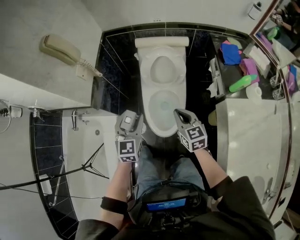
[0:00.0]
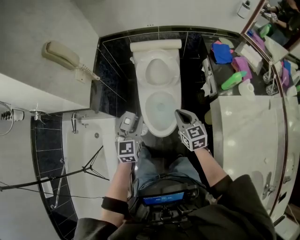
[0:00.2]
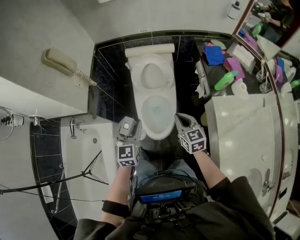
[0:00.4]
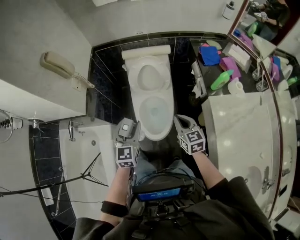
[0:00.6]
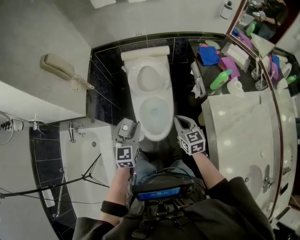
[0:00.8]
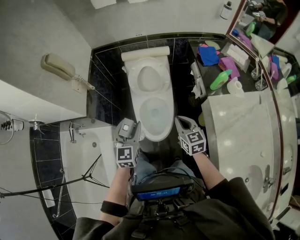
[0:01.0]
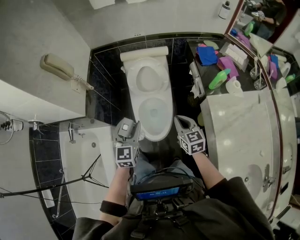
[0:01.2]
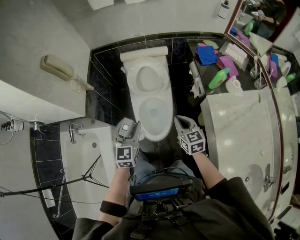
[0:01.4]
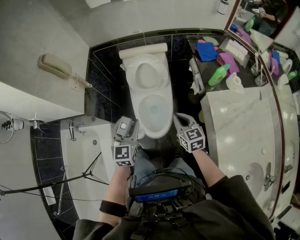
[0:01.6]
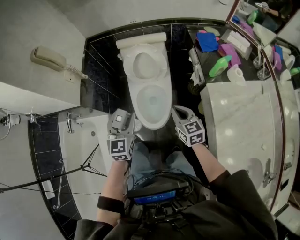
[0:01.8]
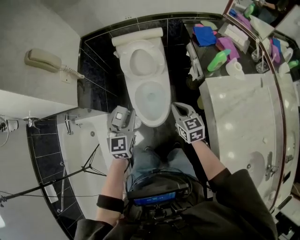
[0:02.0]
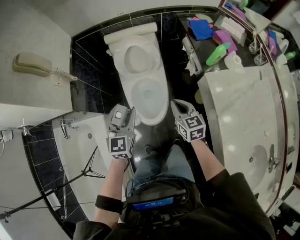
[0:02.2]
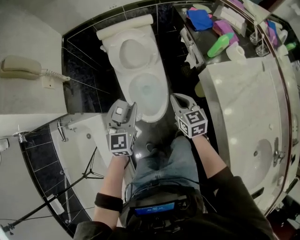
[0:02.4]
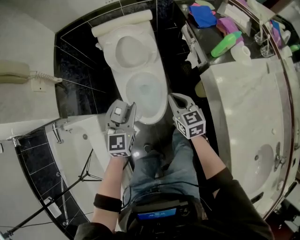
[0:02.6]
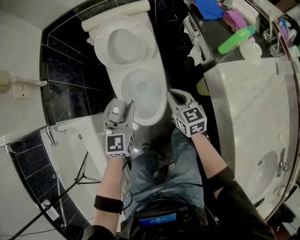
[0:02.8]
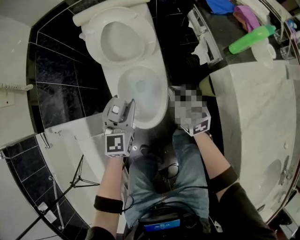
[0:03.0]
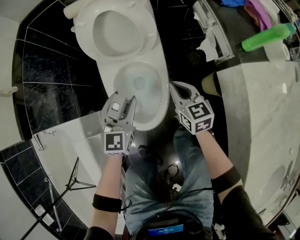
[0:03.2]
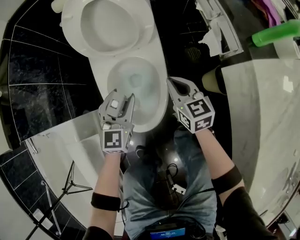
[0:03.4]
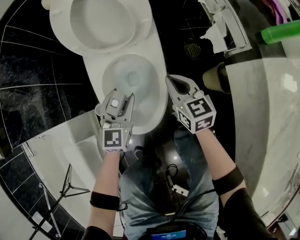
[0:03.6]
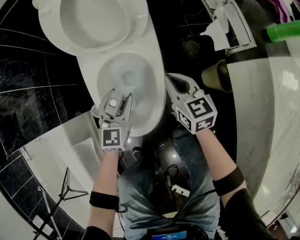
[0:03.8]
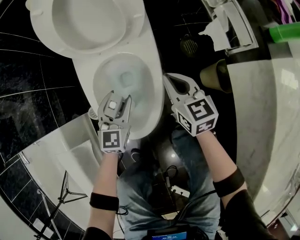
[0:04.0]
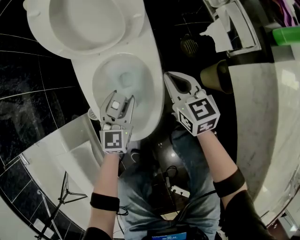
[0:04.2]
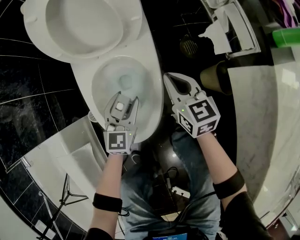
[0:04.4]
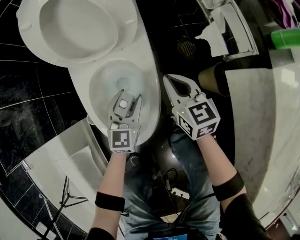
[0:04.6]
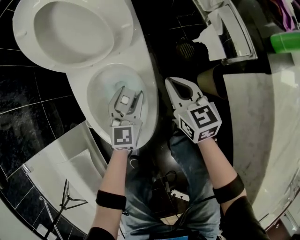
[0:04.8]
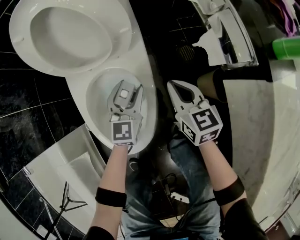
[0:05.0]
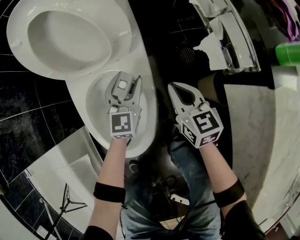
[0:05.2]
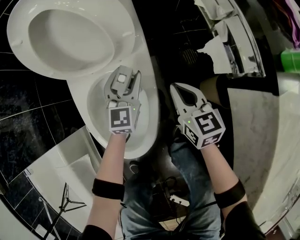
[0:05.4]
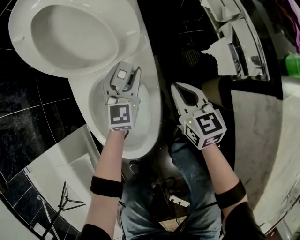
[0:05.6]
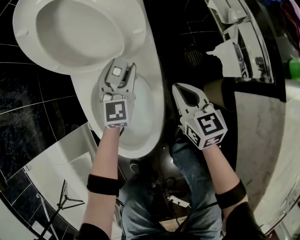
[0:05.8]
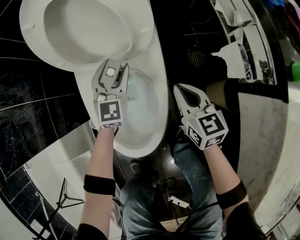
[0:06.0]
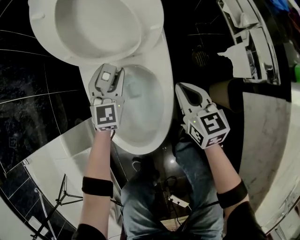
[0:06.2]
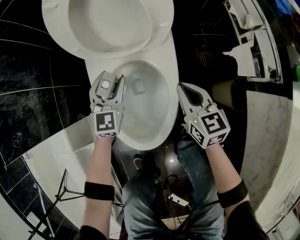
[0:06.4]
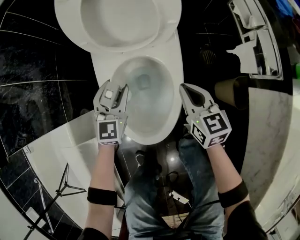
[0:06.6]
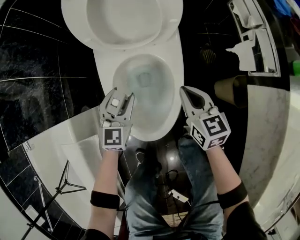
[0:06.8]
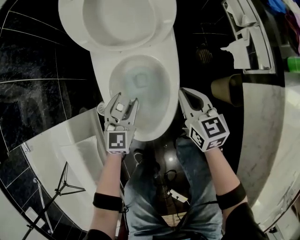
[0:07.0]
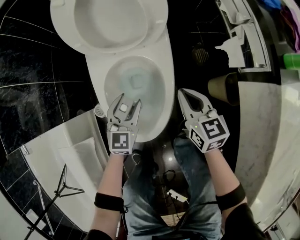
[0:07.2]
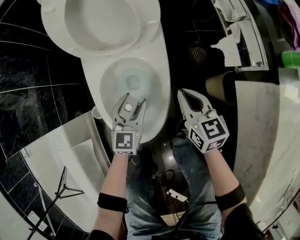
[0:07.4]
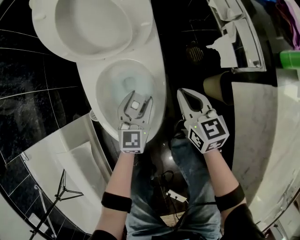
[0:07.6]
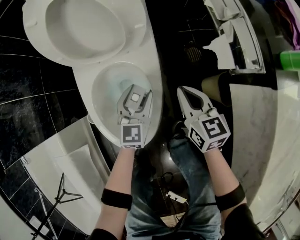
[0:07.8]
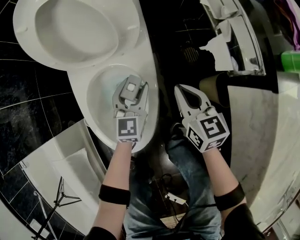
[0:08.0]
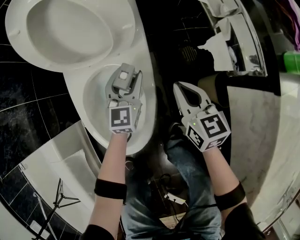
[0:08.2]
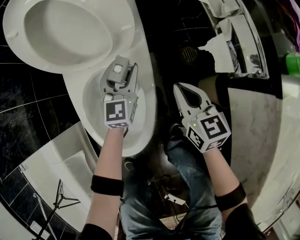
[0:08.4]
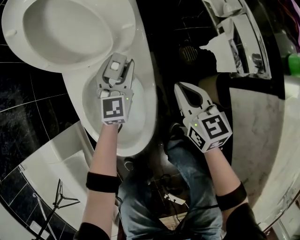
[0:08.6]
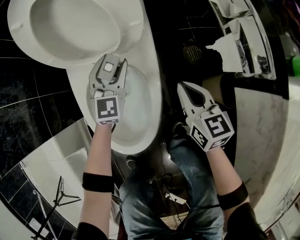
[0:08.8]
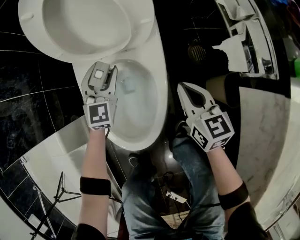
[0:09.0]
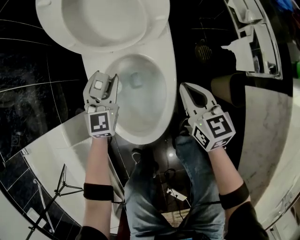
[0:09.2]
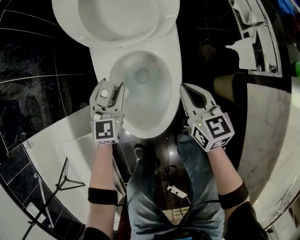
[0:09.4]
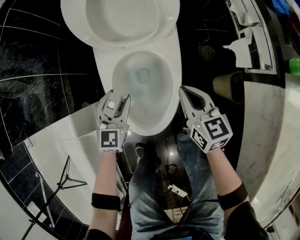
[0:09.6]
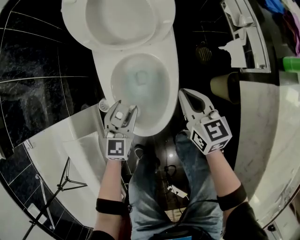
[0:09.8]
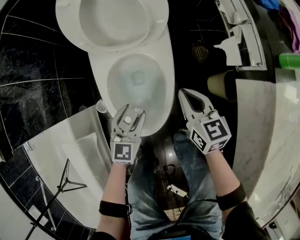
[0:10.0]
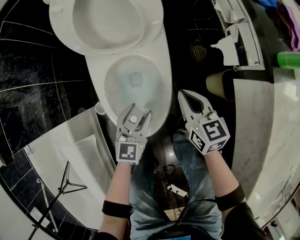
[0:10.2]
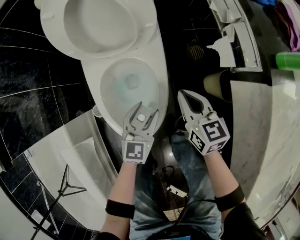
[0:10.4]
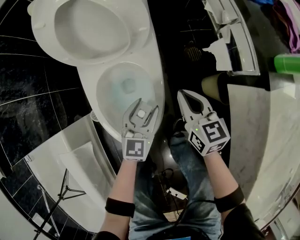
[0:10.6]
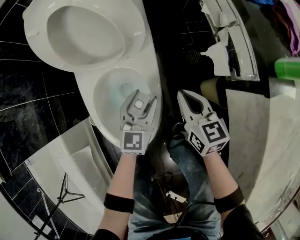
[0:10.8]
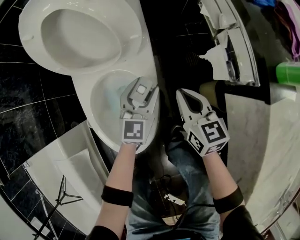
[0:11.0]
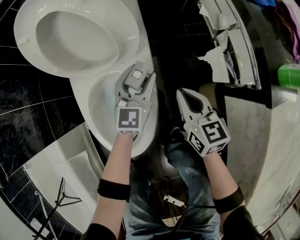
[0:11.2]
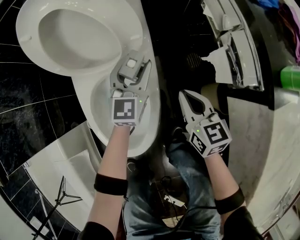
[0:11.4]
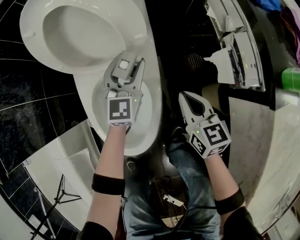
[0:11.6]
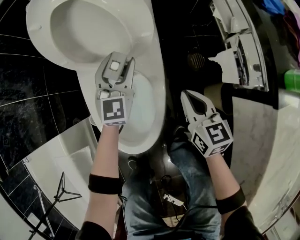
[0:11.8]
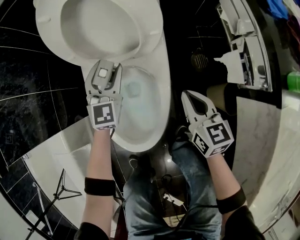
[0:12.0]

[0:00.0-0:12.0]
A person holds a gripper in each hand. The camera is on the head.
0:00.0 to 0:01.6: The right gripper goes roughly 10 cm to the right and backward, while the left gripper shifts some 10 cm backward and to the right.
0:01.6 to 0:03.0: Both grippers move downward and forward, some 30 cm.
0:03.0 to 0:04.4: The right gripper goes some 15 cm downward; the left gripper is displaced downward by approximately 25 cm.
0:04.4 to 0:06.0: The left gripper shifts about 15 cm forward.
0:06.0 to 0:07.6: The right gripper moves backward, about 5 cm. Meanwhile the left gripper heads backward, covering about 15 cm.
0:07.6 to 0:09.0: The left gripper moves forward and to the left, about 15 cm.
0:09.0 to 0:10.4: The left gripper is displaced backward and to the right by about 20 cm, and changes its angle by some 20 degrees.
0:10.4 to 0:12.0: The left gripper moves forward and to the left, about 20 cm, and changes its angle by roughly 30 degrees.

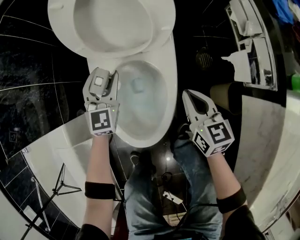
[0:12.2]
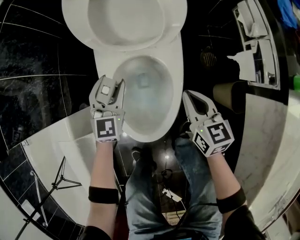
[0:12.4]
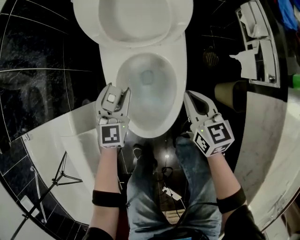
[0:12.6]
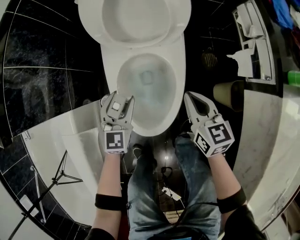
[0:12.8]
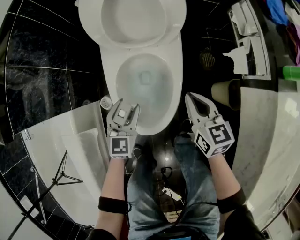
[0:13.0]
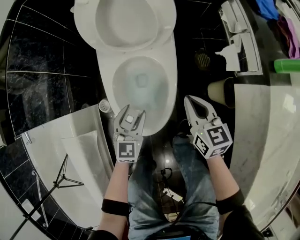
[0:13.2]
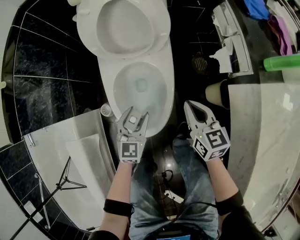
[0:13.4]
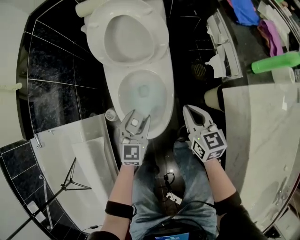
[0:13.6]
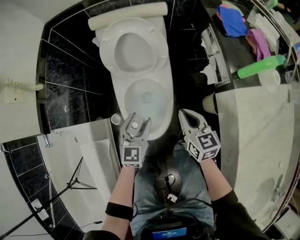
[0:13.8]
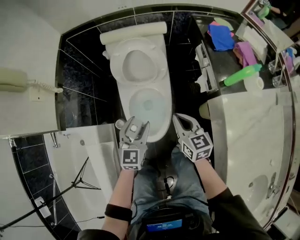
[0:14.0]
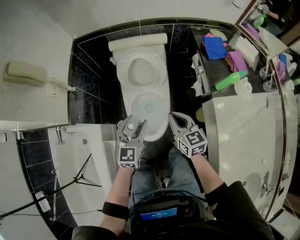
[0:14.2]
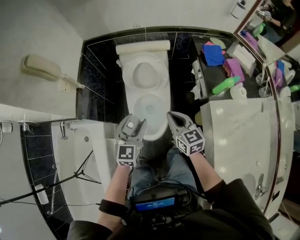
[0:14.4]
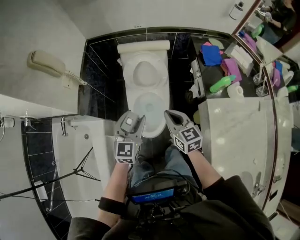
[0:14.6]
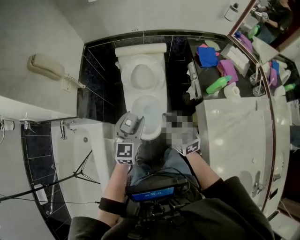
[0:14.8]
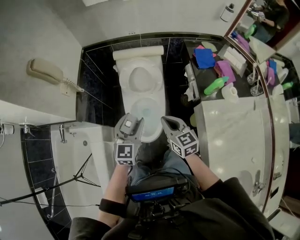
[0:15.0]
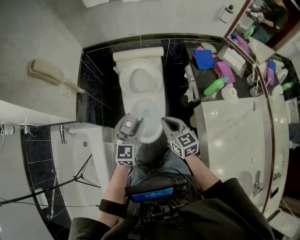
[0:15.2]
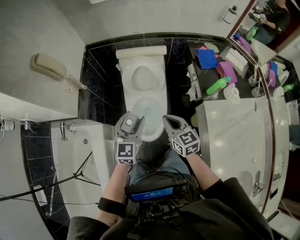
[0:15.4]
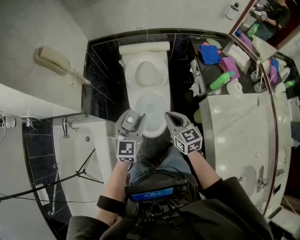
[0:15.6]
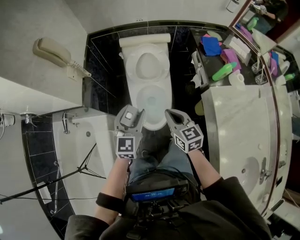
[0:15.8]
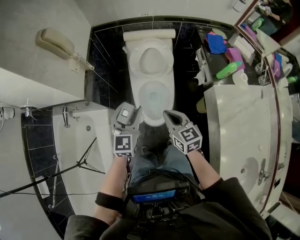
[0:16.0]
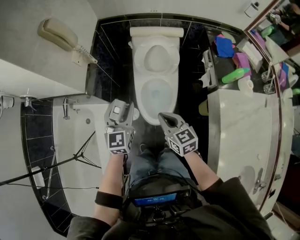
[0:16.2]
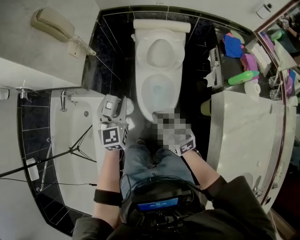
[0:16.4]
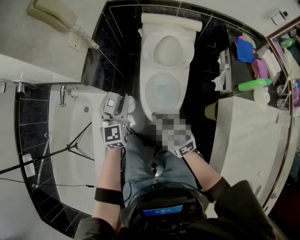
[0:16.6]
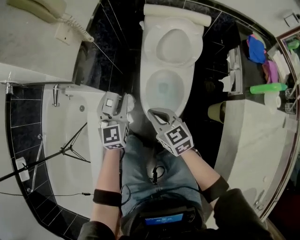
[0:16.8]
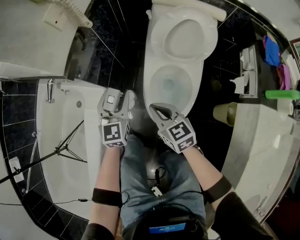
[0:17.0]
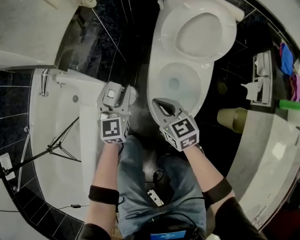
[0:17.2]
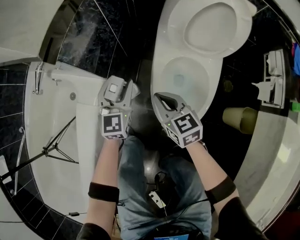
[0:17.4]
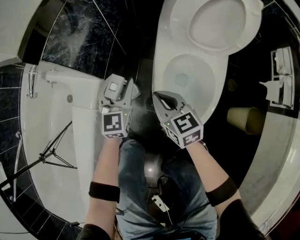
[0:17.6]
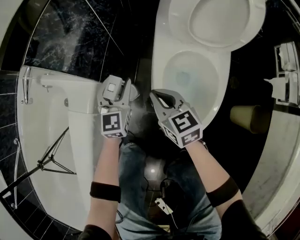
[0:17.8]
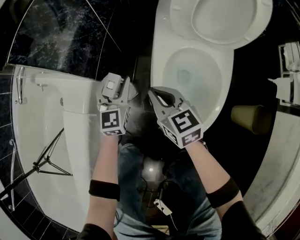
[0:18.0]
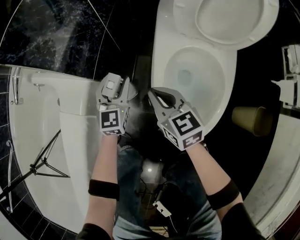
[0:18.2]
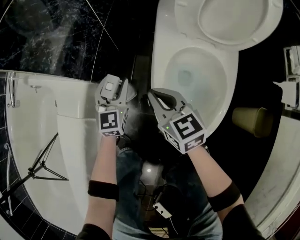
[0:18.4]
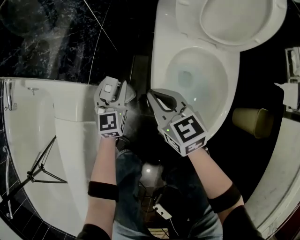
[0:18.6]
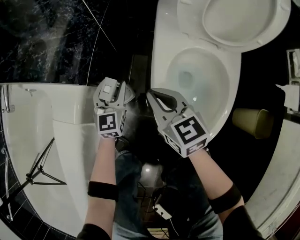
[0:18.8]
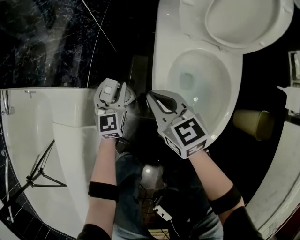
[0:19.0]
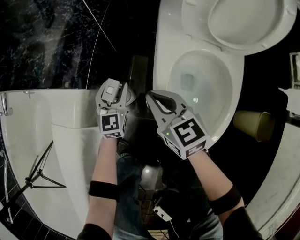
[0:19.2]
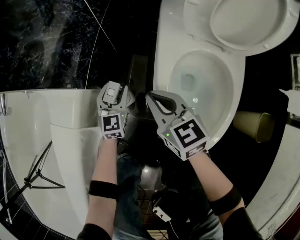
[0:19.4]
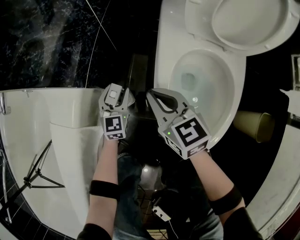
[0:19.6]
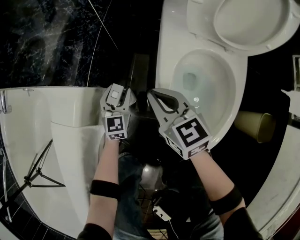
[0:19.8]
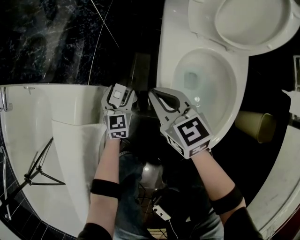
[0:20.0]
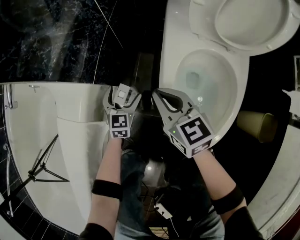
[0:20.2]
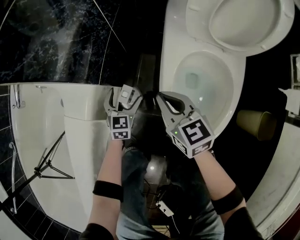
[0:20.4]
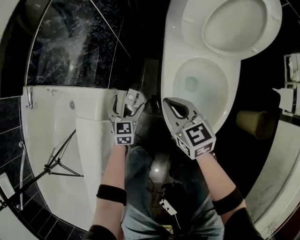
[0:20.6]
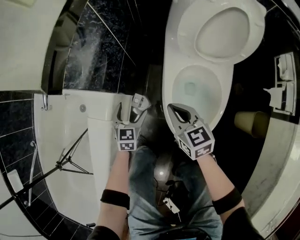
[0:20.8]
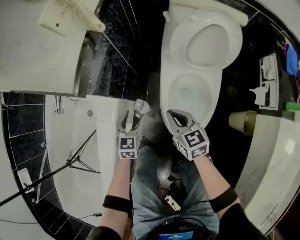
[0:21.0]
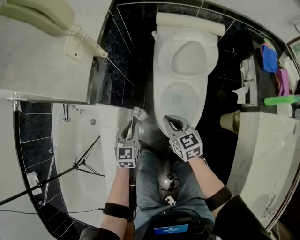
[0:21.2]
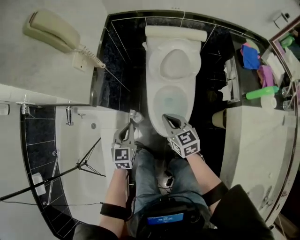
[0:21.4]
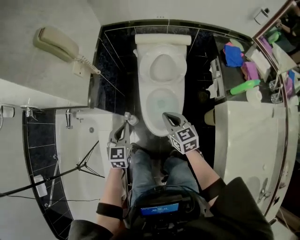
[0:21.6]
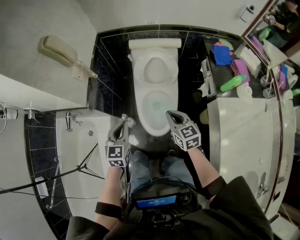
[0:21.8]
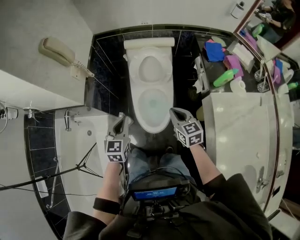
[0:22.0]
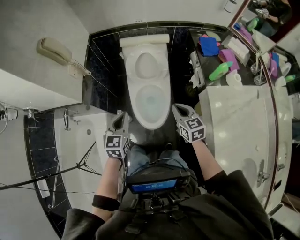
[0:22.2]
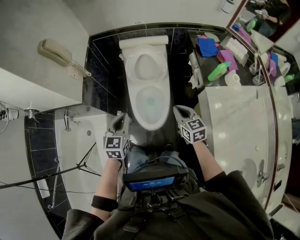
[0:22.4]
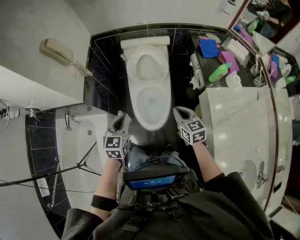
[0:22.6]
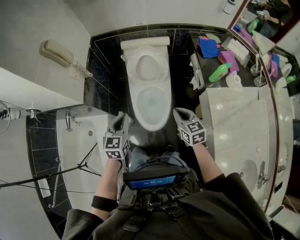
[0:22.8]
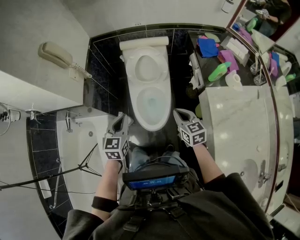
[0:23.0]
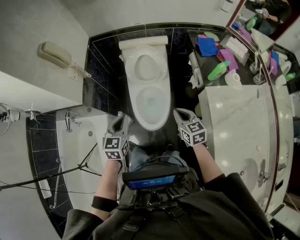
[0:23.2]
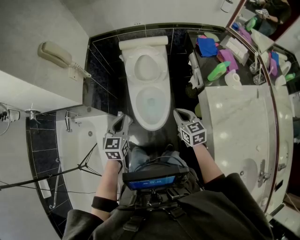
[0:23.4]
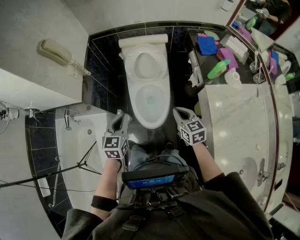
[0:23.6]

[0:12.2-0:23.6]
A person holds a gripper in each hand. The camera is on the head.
0:12.2 to 0:13.6: The right gripper moves upward and backward, about 15 cm. Meanwhile the left gripper travels backward by roughly 20 cm.
0:13.6 to 0:15.0: The grippers both shift upward by some 35 cm.
0:15.0 to 0:16.4: The right gripper shifts approximately 15 cm to the left and downward, while the left gripper heads to the left, covering roughly 15 cm, and rotates approximately 20 degrees.
0:16.4 to 0:17.8: The right gripper is displaced downward and forward by approximately 50 cm. The left gripper is displaced downward by roughly 50 cm.
0:17.8 to 0:19.4: The right gripper travels downward by approximately 10 cm. Meanwhile the left gripper shifts roughly 20 cm downward.
0:19.4 to 0:20.8: The right gripper moves upward, roughly 15 cm; the left gripper goes about 15 cm upward and backward, and opens up.
0:20.8 to 0:22.2: The right gripper heads upward, to the right and backward, covering roughly 50 cm, and turns by about 20 degrees, while the left gripper travels upward by some 50 cm, and closes its fingers.
0:22.2 to 0:23.6: The grippers stay close to where they were, moving slightly.
